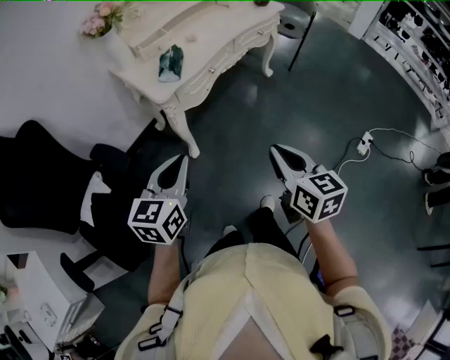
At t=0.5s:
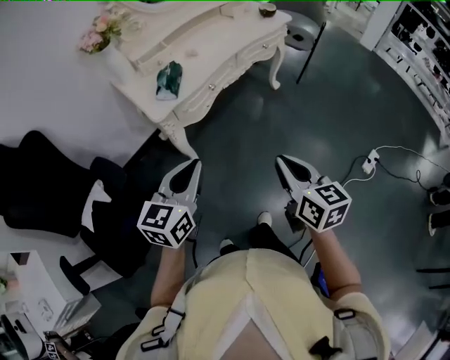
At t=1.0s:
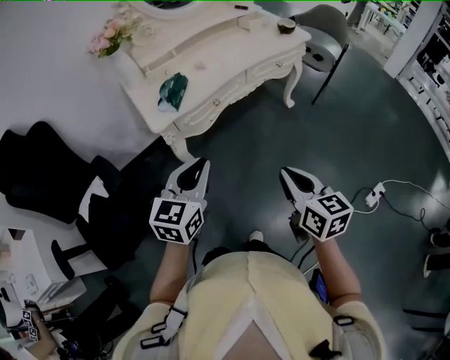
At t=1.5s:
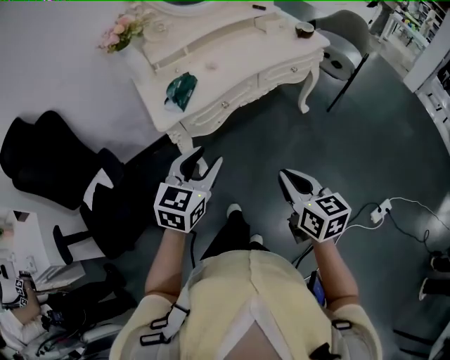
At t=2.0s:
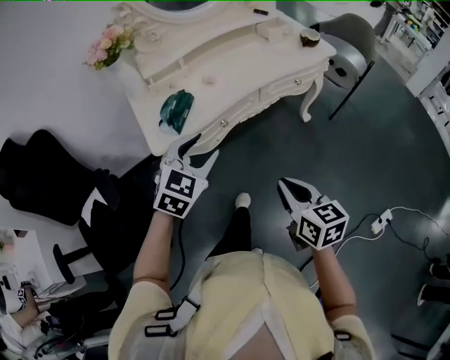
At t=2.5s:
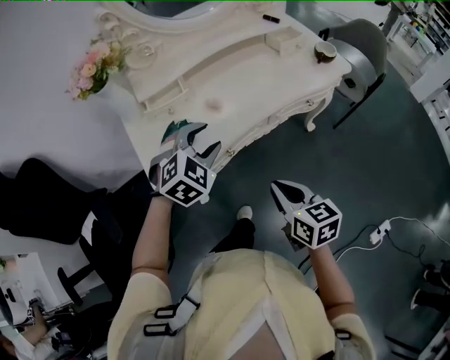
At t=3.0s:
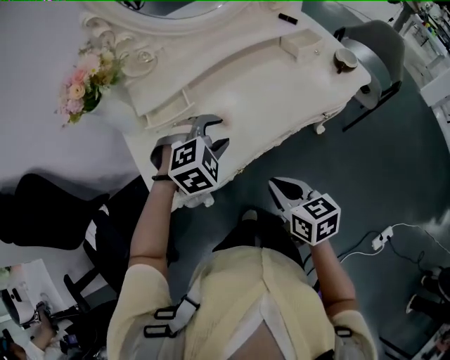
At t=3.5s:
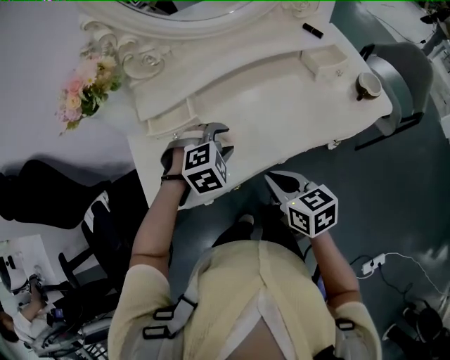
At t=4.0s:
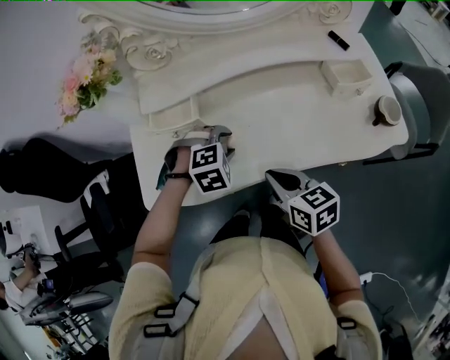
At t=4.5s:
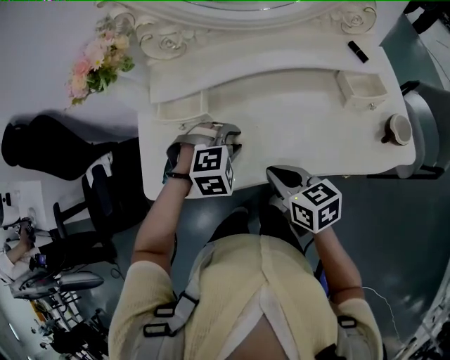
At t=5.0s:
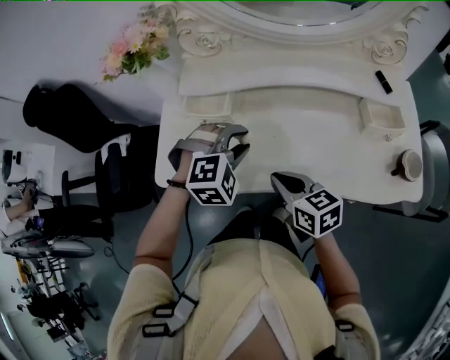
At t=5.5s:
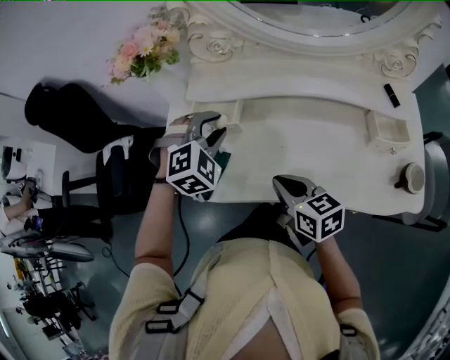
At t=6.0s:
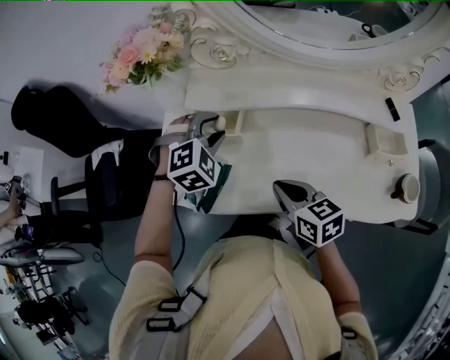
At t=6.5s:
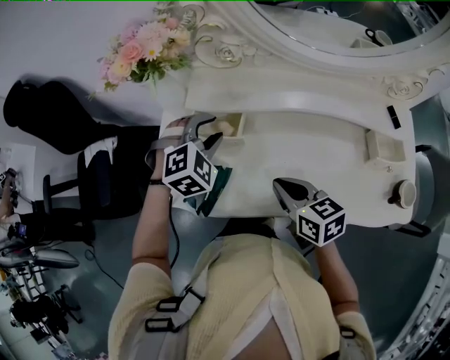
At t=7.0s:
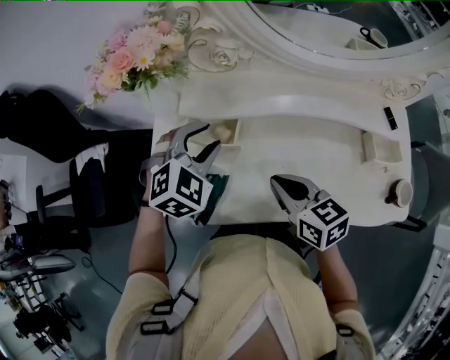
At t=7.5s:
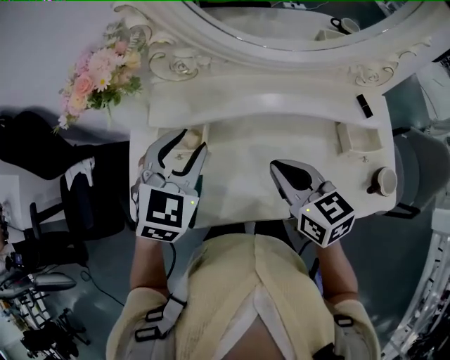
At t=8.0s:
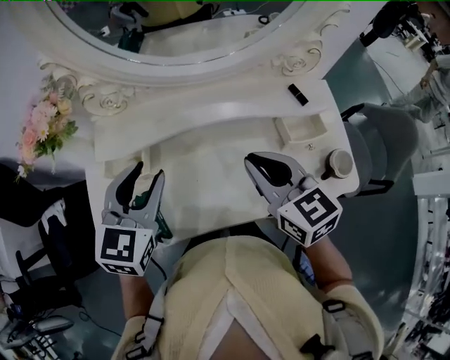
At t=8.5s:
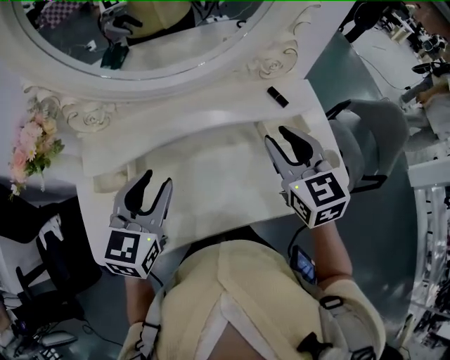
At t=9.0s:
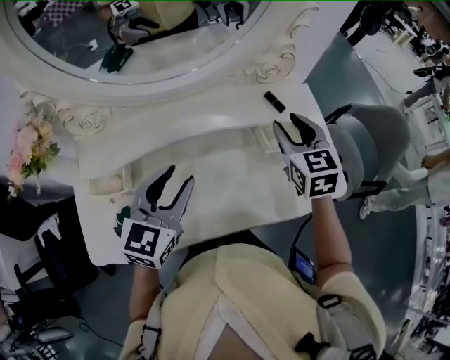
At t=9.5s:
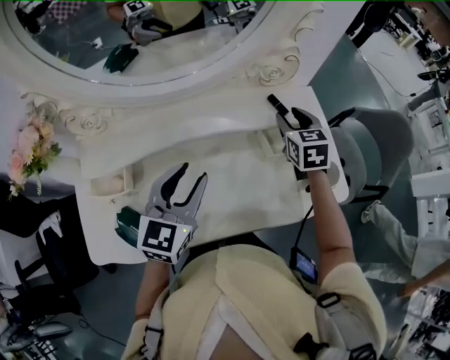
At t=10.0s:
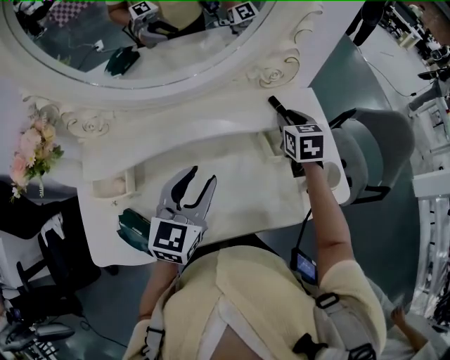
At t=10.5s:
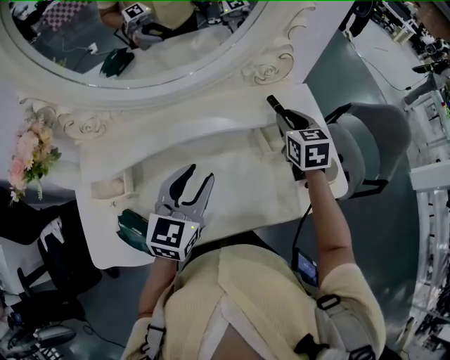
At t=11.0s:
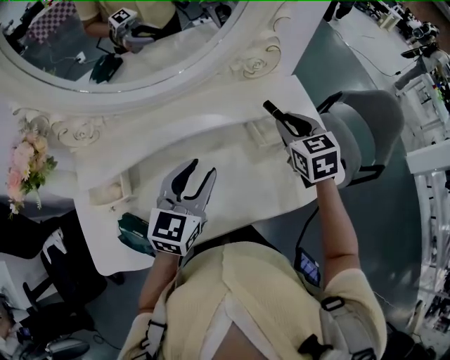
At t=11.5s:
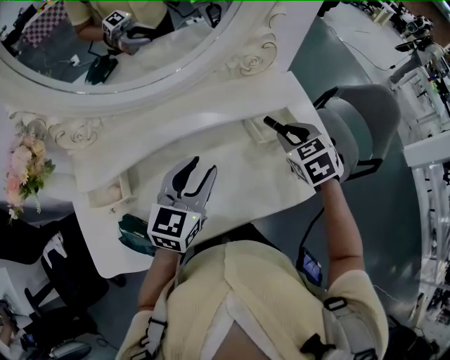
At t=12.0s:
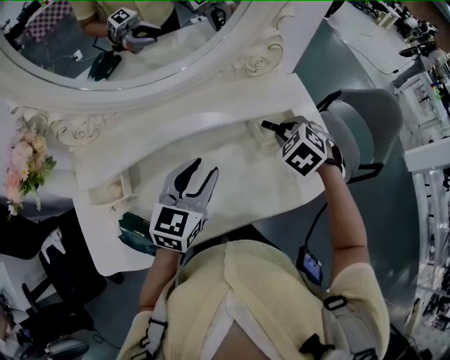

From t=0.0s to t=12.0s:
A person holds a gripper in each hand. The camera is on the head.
From t=0.0s to t=2.0s: The grippers both shift forward and to the right by roughly 30 cm. The left gripper rotates roughly 30 degrees, and opens. Meanwhile the right gripper swivels some 20 degrees.
From t=2.0s to t=4.0s: The right gripper is displaced forward by approximately 40 cm, and turns by some 30 degrees. The left gripper is displaced forward and downward by approximately 35 cm, and tips its fingers downward by approximately 40 degrees.
From t=4.0s to t=6.0s: The left gripper moves some 20 cm, and turns by some 30 degrees. Meanwhile the right gripper ends up approximately 10 cm from where it was.
From t=6.0s to t=8.0s: The left gripper travels upward, to the right and backward by approximately 15 cm, and twists about 40 degrees counterclockwise, seen from behind; the right gripper heads to the right and upward, covering some 20 cm, and swivels roughly 30 degrees.
From t=8.0s to t=10.0s: The right gripper shifts roughly 30 cm forward, to the right and downward, and rotates roughly 30 degrees; the left gripper heads to the right, covering about 15 cm.
From t=10.0s to t=12.0s: The right gripper travels backward by approximately 10 cm, and turns by some 50 degrees.

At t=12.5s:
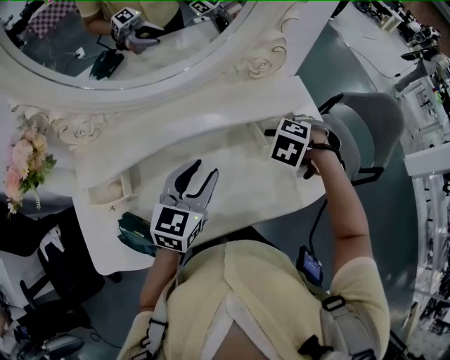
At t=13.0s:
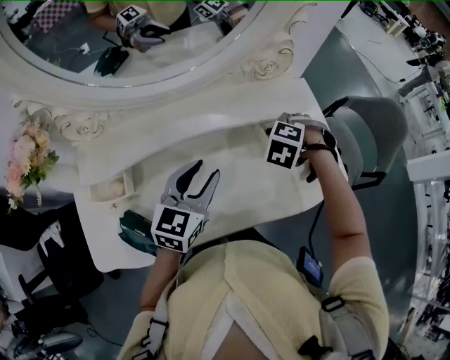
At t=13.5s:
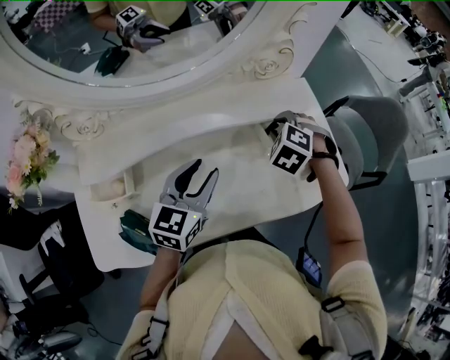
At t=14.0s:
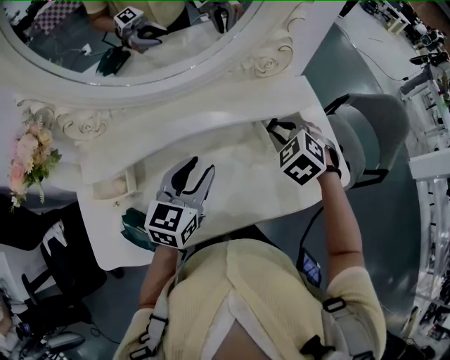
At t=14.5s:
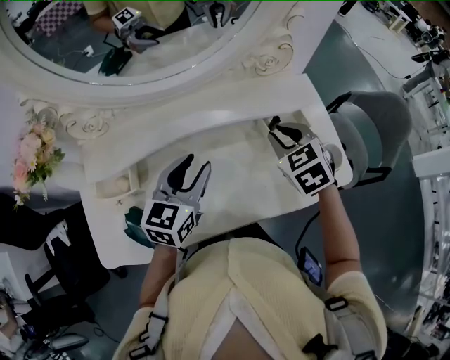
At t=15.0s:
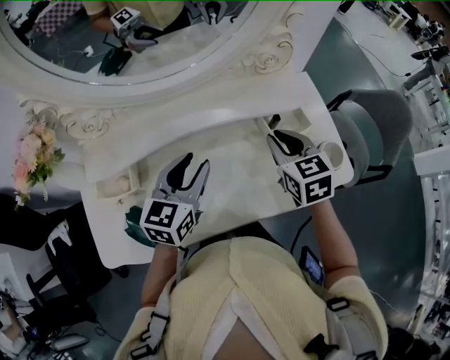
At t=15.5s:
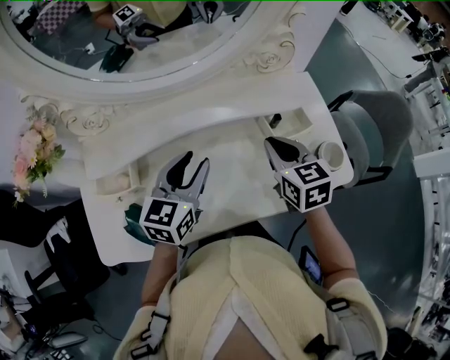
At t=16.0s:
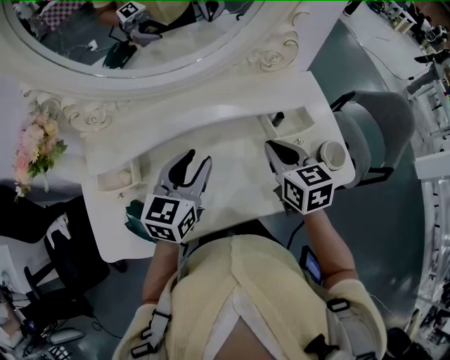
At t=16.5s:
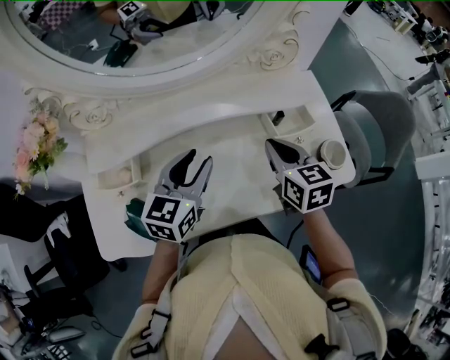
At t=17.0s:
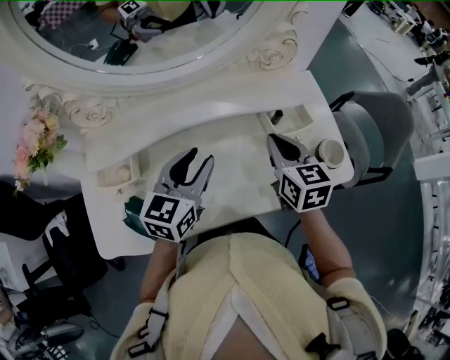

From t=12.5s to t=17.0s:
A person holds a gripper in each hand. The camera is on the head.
From t=12.5s to t=14.5s: The right gripper goes roughly 5 cm upward, and tips its fingers upward by some 30 degrees.
From t=14.5s to t=17.0s: The right gripper swivels about 30 degrees.

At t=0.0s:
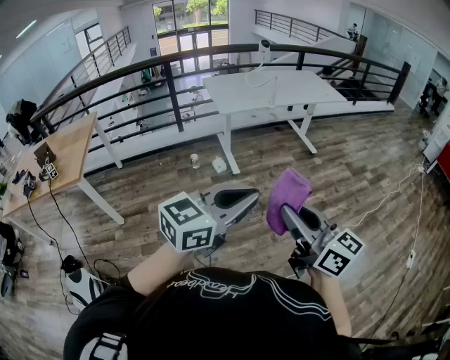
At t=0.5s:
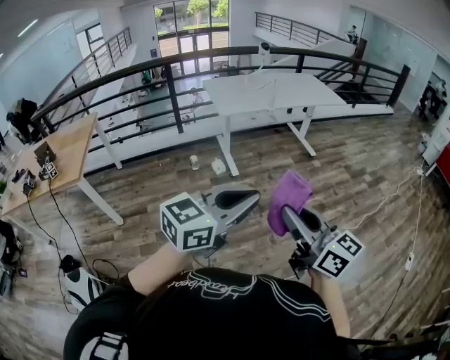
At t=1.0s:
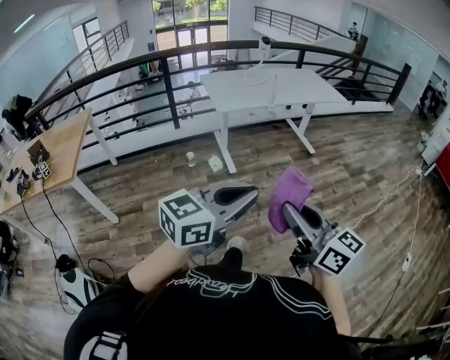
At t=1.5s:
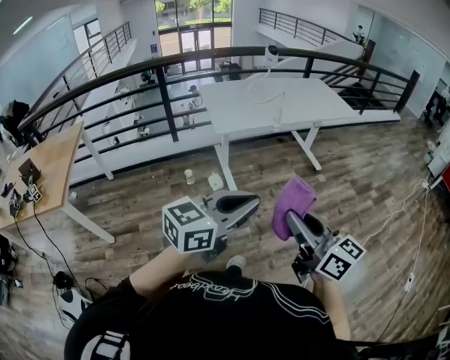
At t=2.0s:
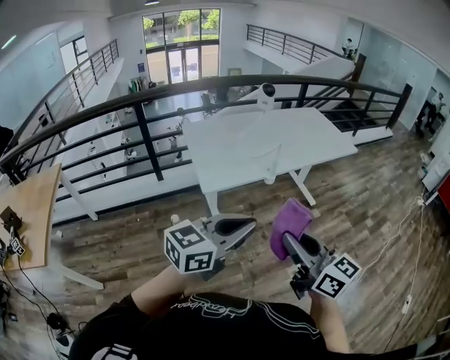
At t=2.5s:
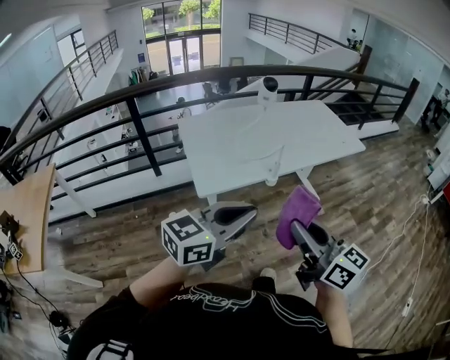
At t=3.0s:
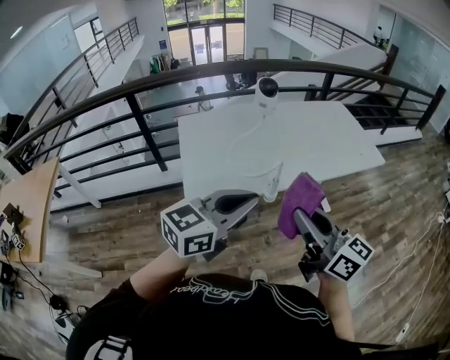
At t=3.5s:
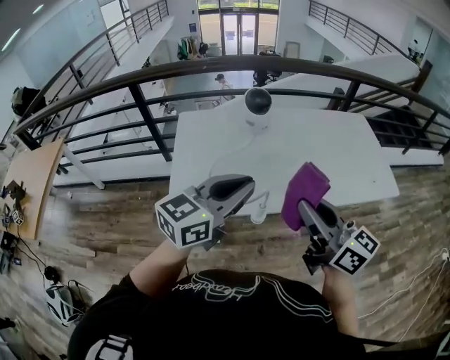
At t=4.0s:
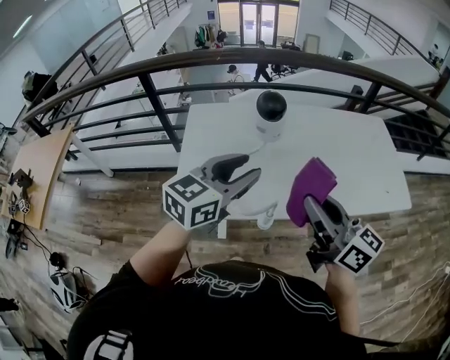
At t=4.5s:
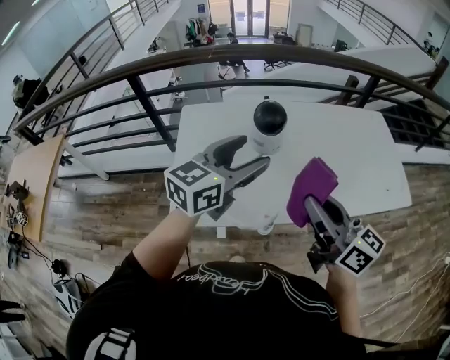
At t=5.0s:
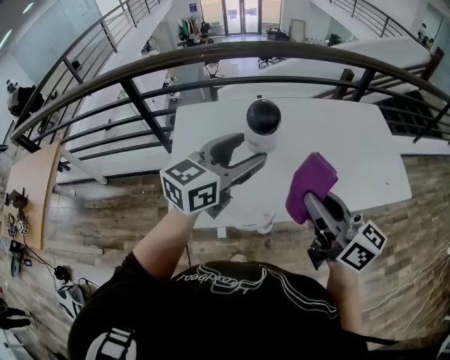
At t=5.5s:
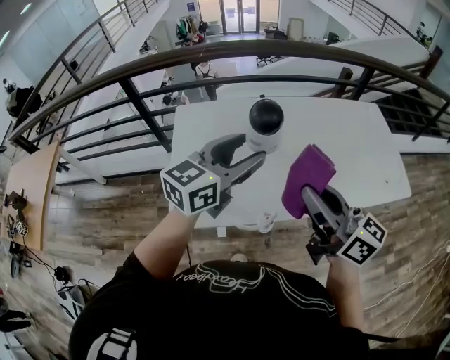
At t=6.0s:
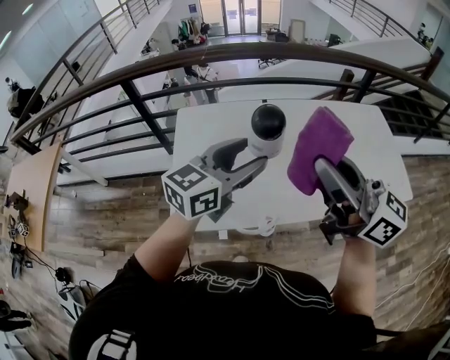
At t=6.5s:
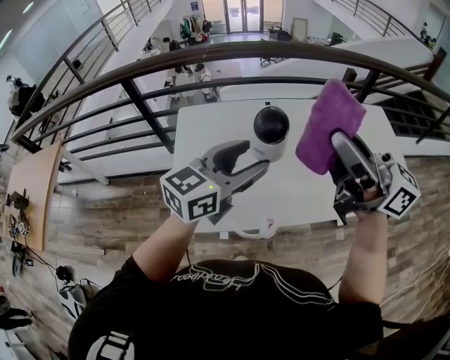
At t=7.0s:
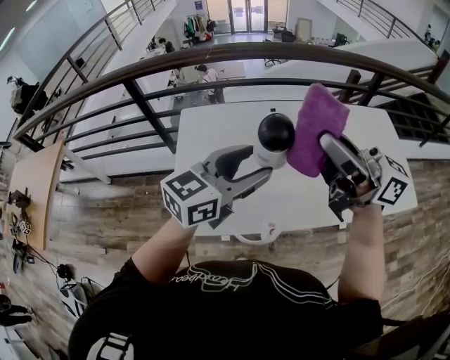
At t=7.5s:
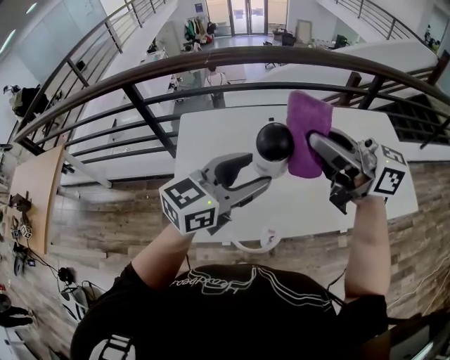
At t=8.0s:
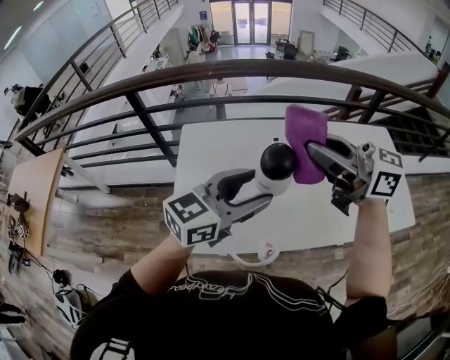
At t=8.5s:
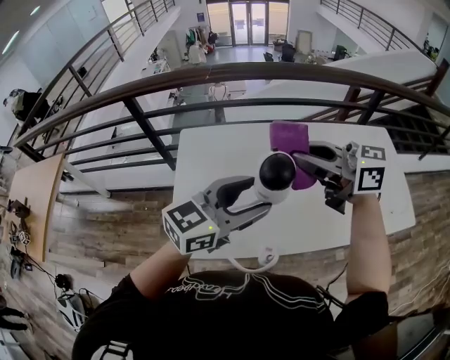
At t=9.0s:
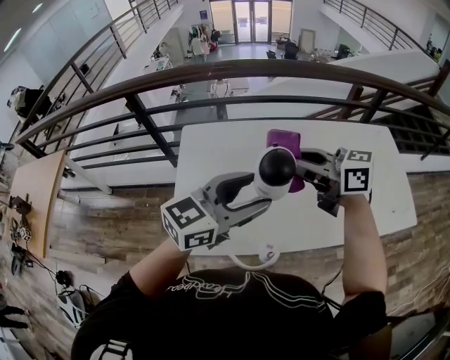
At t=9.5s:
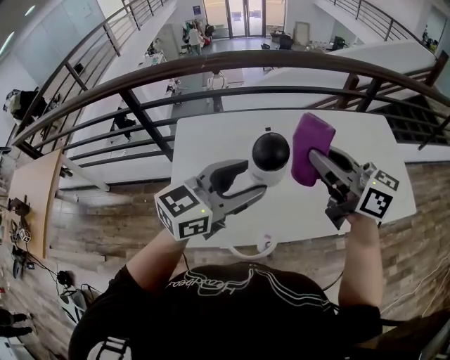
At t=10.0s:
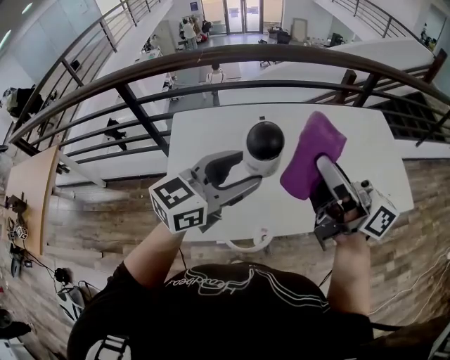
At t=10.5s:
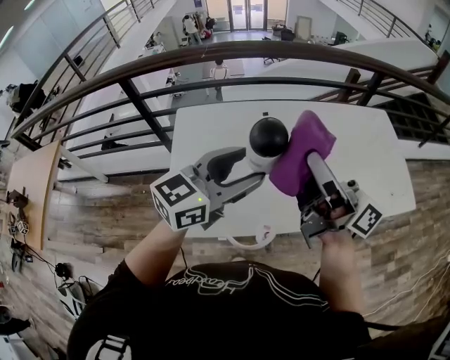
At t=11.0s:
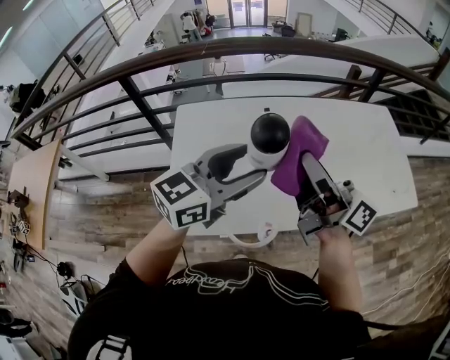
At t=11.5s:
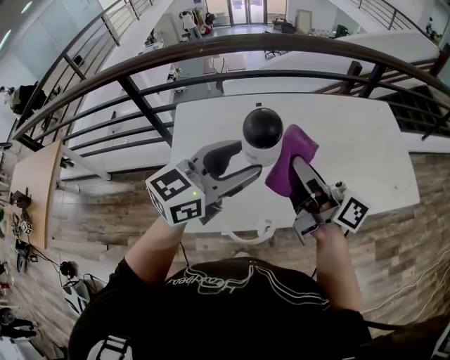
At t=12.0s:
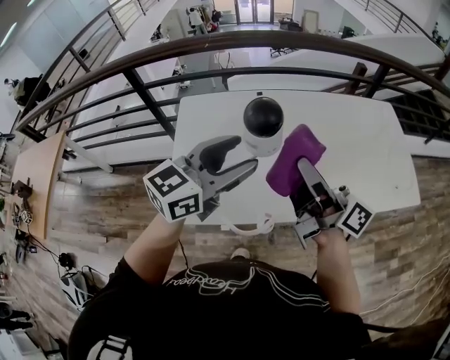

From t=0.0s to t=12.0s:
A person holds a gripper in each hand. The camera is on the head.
From t=0.0s to t=2.0s: The pair of grippers is taken forward, roughly 50 cm.
From t=2.0s to t=4.0s: Both grippers are carried roughly 50 cm. The right gripper rotates approximately 20 degrees. Meanwhile the left gripper turns by about 30 degrees, and opens its fingers.
From t=4.0s to t=6.0s: The left gripper moves forward, some 10 cm. Meanwhile the right gripper moves upward and forward, approximately 15 cm.
From t=6.0s to t=8.0s: The right gripper heads forward, covering some 10 cm, and turns by approximately 20 degrees.
From t=8.0s to t=10.0s: The right gripper goes downward and returns, roughly 10 cm each way, and rotates approximately 30 degrees.
From t=10.0s to t=12.0s: The right gripper is displaced downward by roughly 10 cm.
